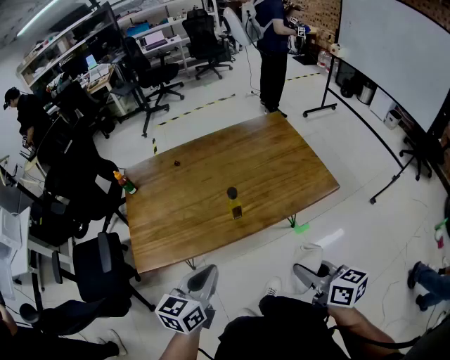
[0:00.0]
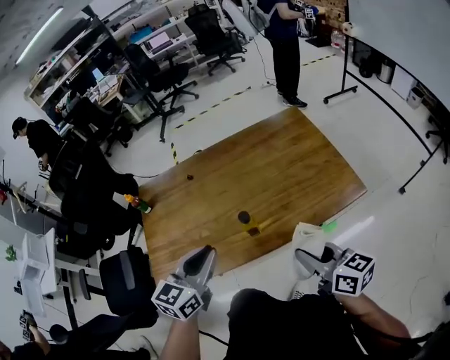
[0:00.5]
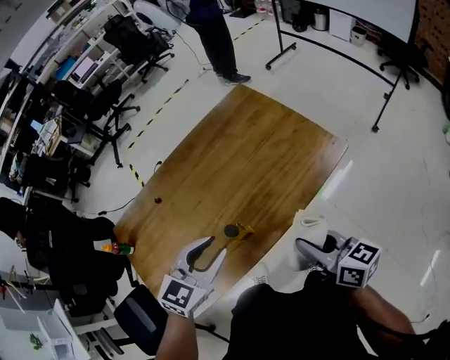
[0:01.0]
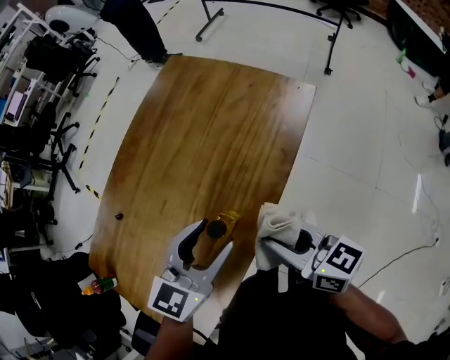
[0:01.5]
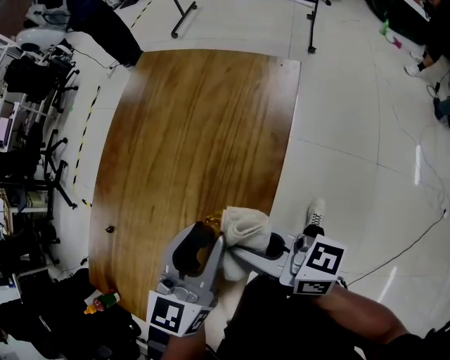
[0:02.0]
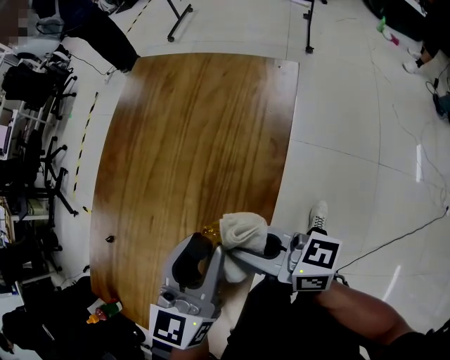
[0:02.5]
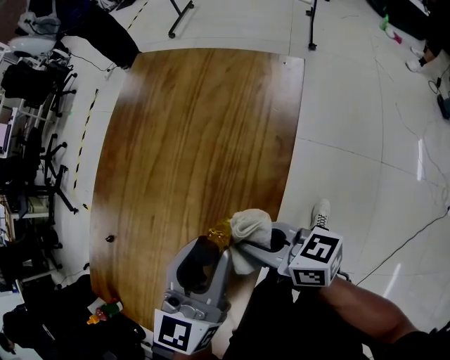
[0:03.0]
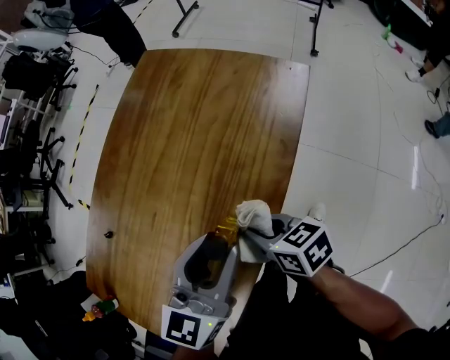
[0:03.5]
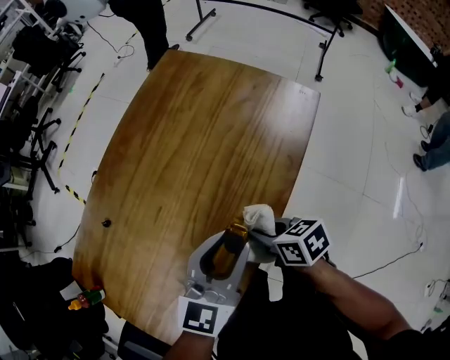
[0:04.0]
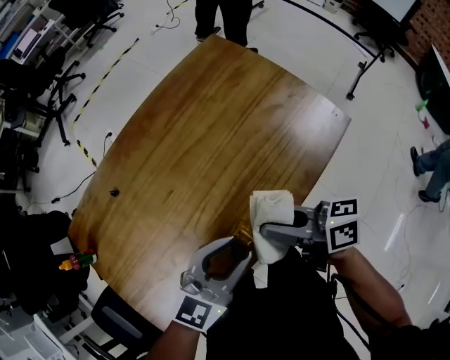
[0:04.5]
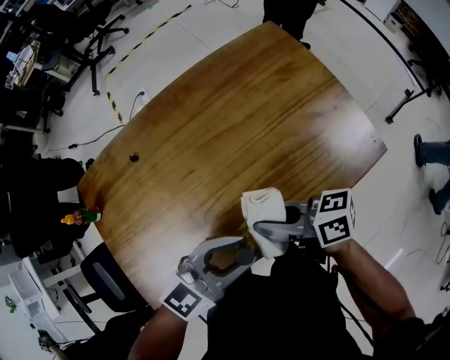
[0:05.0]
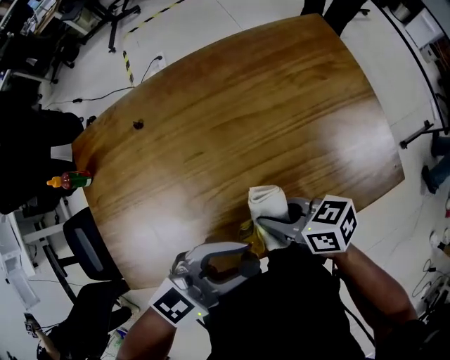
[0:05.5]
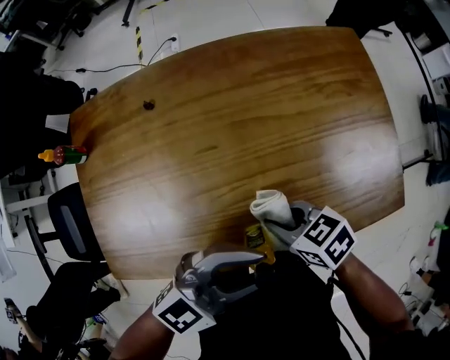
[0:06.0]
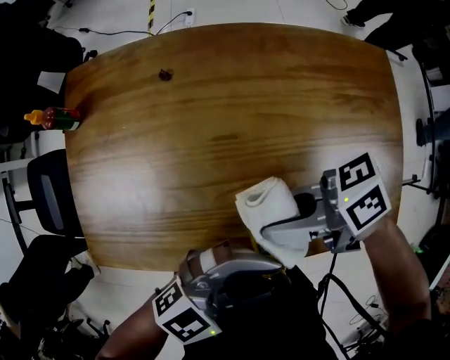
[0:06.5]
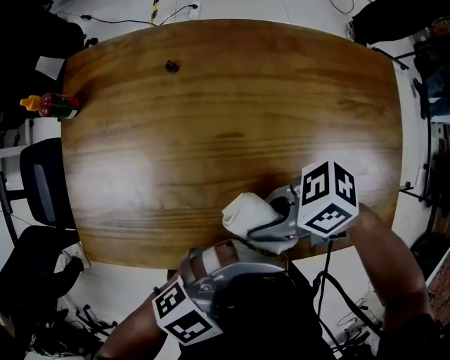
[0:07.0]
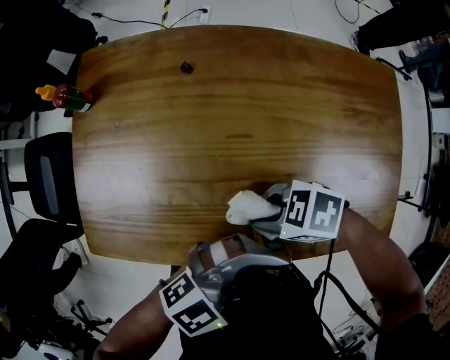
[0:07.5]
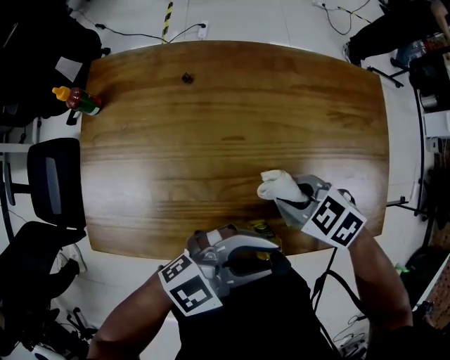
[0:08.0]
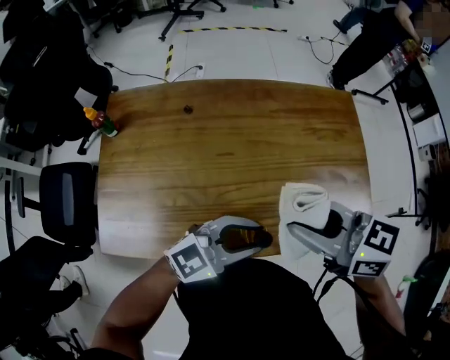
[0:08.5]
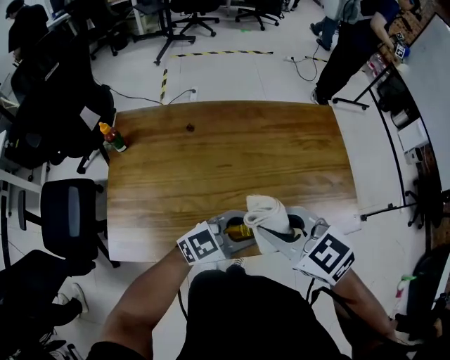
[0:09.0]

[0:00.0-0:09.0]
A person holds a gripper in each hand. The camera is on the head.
0:00.0 to 0:02.0: The right gripper moves approximately 25 cm, and swivels roughly 40 degrees. Meanwhile the left gripper moves some 25 cm, swivels about 50 degrees, and opens up.
0:02.0 to 0:04.5: The right gripper shifts approximately 5 cm forward, moves approximately 15 cm downward and comes back, and changes its angle by approximately 40 degrees.
0:04.5 to 0:07.0: The right gripper moves up and down over about 10 cm, changing direction 2 times, and changes its angle by roughly 90 degrees.
0:07.0 to 0:09.0: The right gripper shifts about 20 cm upward, and rotates roughly 70 degrees.

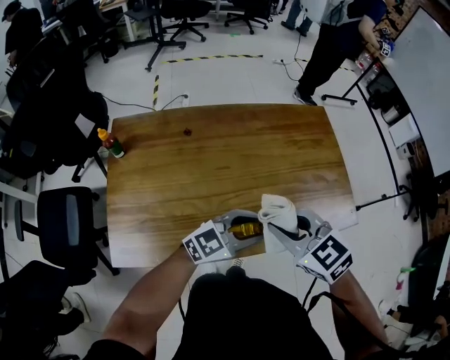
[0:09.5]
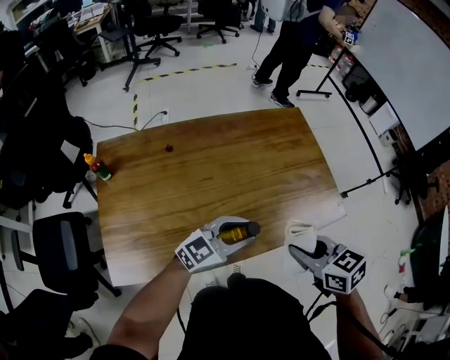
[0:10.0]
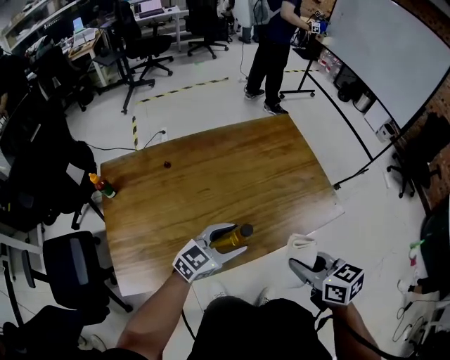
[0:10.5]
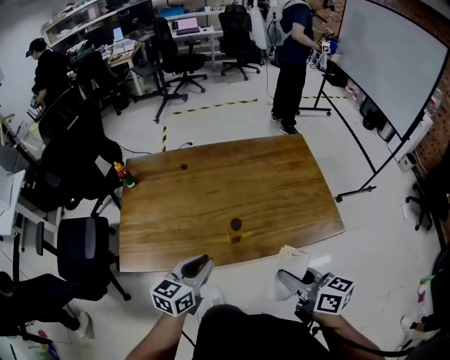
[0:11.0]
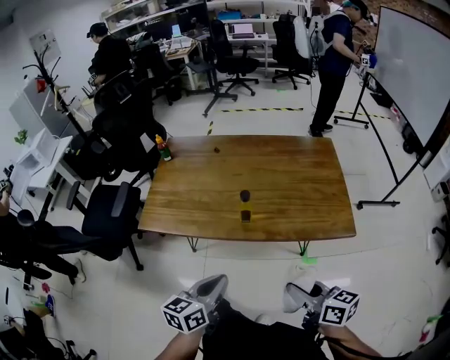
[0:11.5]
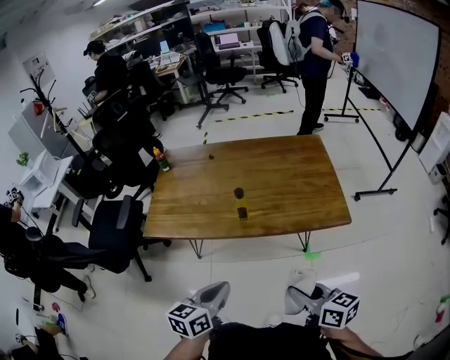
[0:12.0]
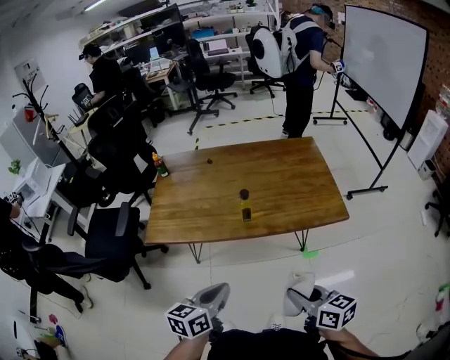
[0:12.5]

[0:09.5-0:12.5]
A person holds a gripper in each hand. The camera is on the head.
0:09.5 to 0:11.0: The right gripper shifts some 20 cm to the right and backward, and rotates around the line of its fingers by about 40 degrees, clockwise from behind. The left gripper is displaced backward and to the left by some 10 cm, rotates about 50 degrees, and opens, then closes again.
0:11.0 to 0:12.5: Both grippers travel together backward, some 20 cm.

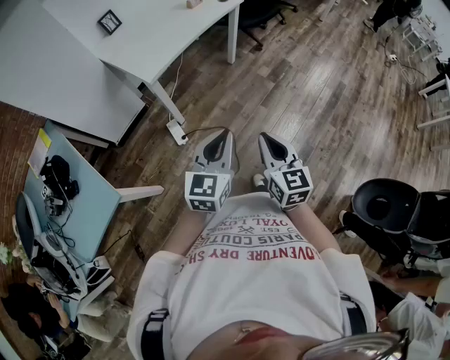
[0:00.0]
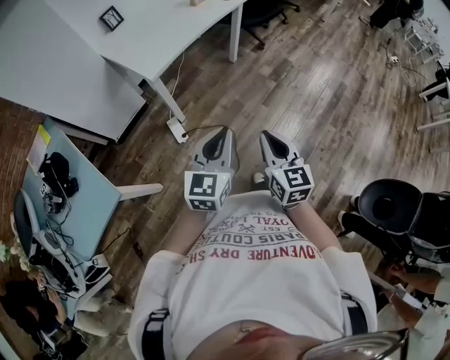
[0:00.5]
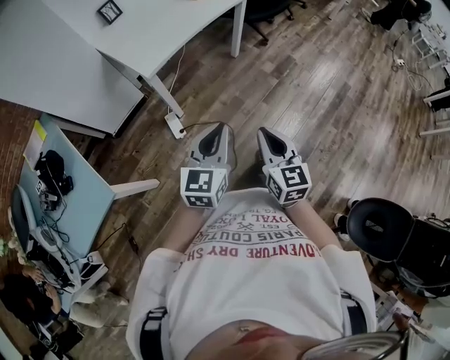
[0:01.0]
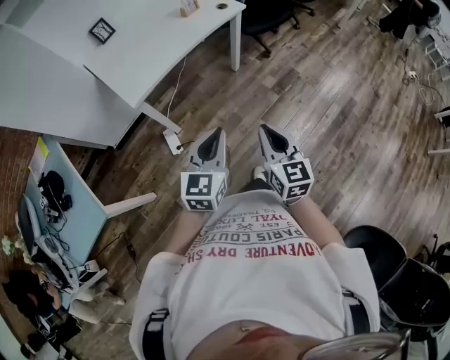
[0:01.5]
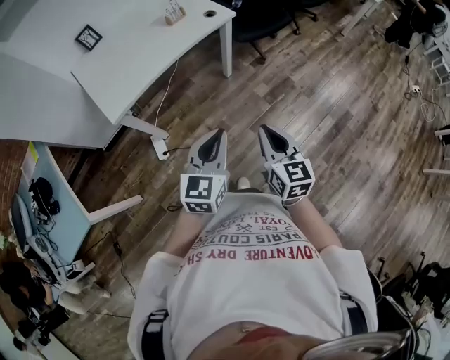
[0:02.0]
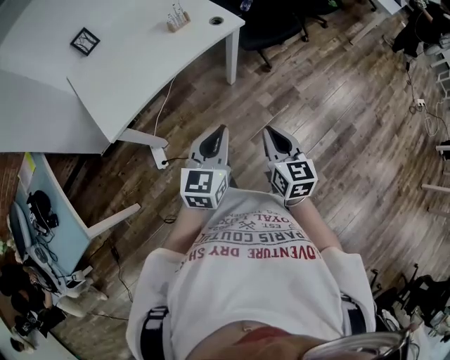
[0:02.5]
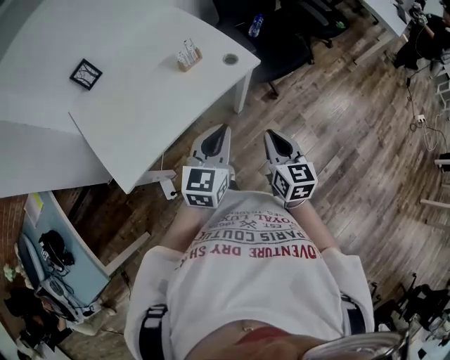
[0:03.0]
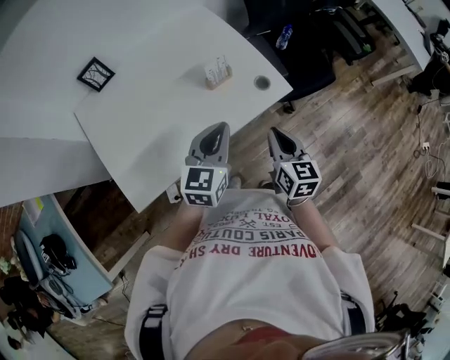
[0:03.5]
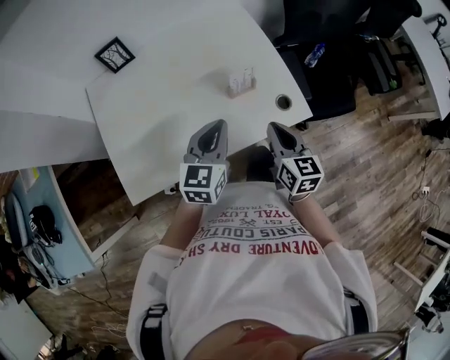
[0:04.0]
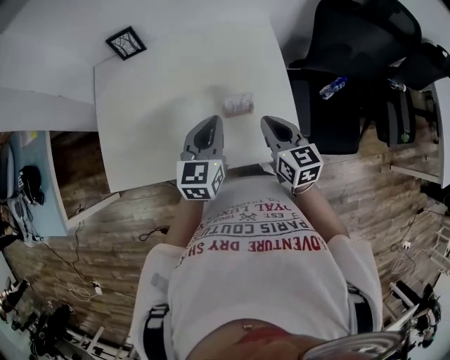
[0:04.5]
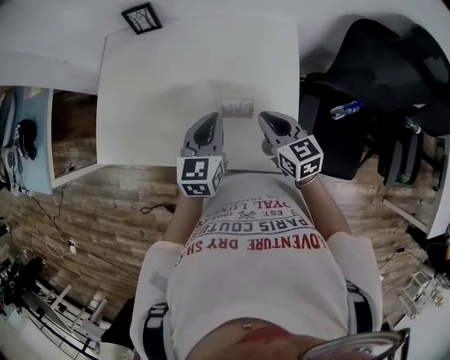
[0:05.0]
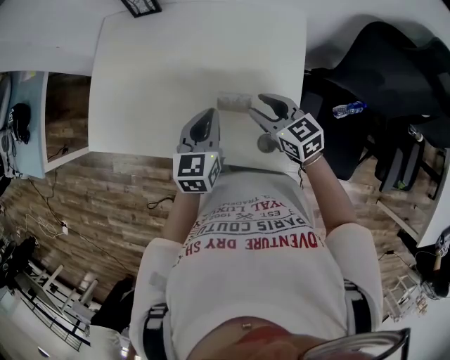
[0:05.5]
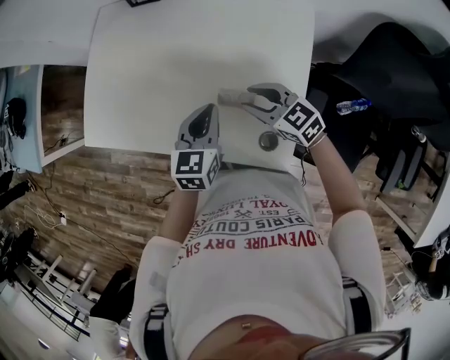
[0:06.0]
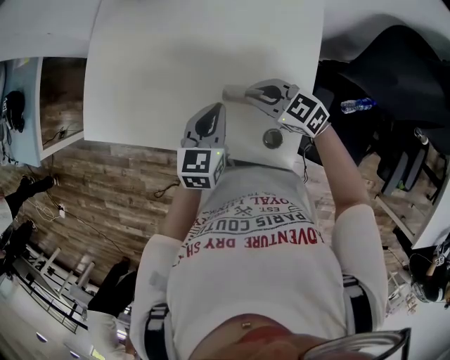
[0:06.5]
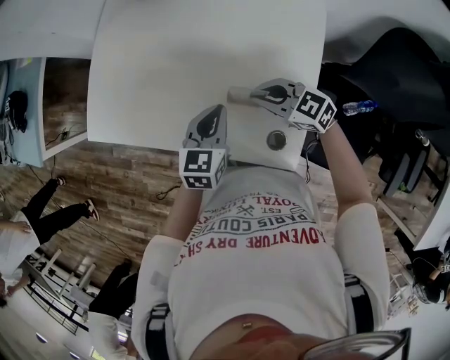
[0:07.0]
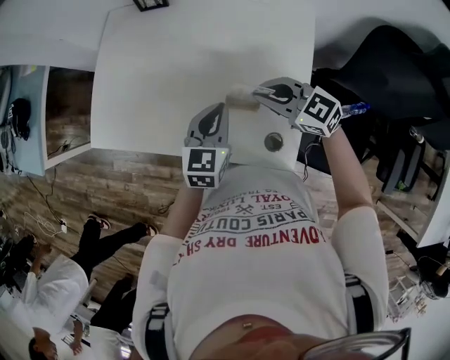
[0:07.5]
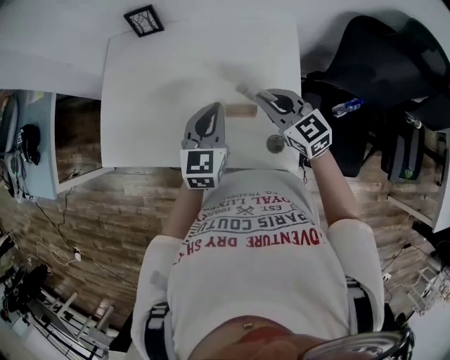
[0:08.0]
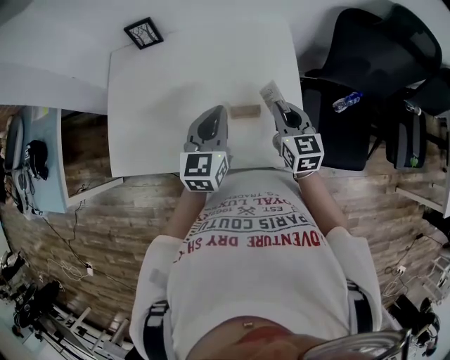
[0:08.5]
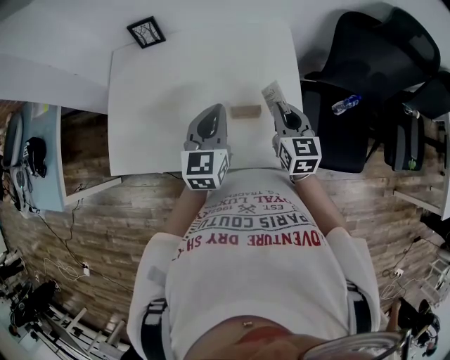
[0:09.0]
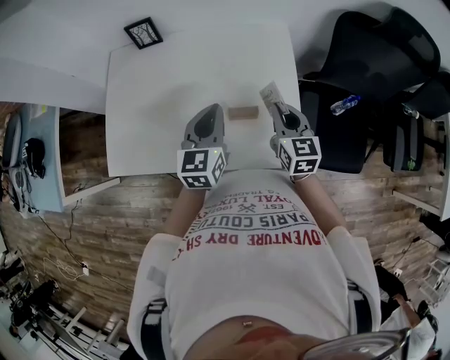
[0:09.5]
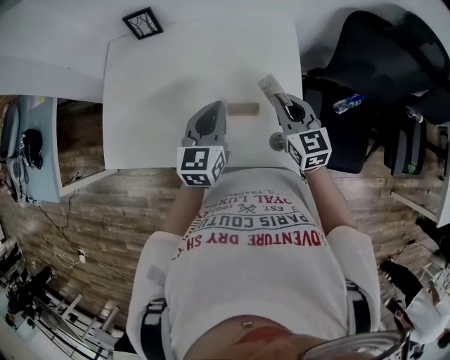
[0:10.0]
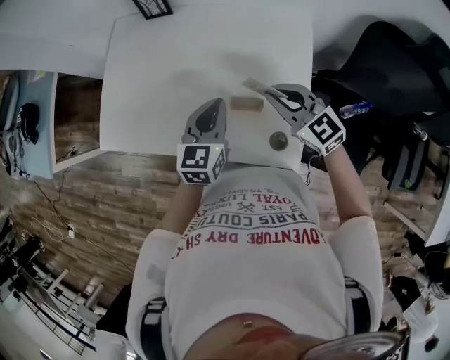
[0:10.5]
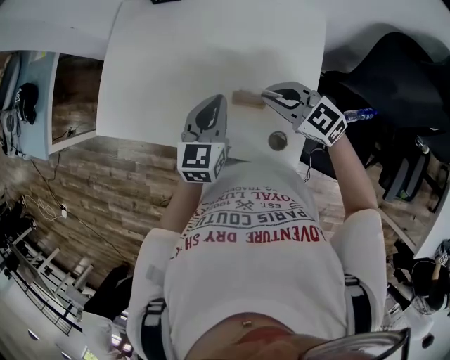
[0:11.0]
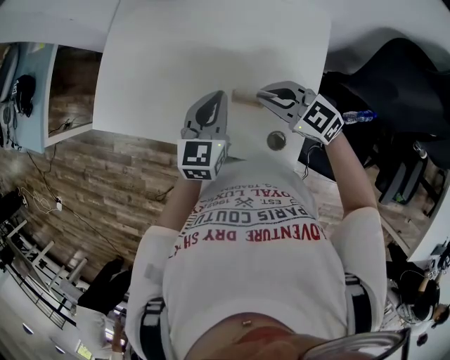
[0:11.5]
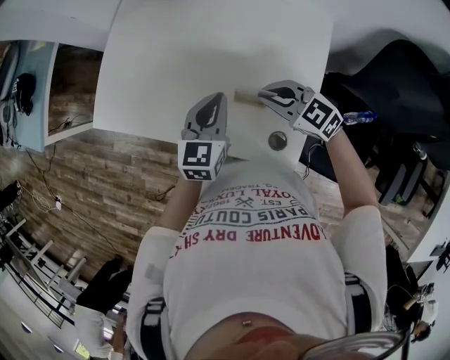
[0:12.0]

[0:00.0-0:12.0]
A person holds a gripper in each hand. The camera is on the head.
0:00.0 to 0:02.0: The grippers both shift forward and to the right by roughly 35 cm.
0:02.0 to 0:04.0: The pair of grippers is taken forward, about 60 cm. The left gripper changes its angle by about 20 degrees.
0:04.0 to 0:06.0: The right gripper shifts by about 20 cm, turns by approximately 80 degrees, and opens up. The left gripper moves about 15 cm, and turns by approximately 40 degrees.
0:06.0 to 0:08.0: The grippers both shift upward by roughly 10 cm. The right gripper turns by about 20 degrees, and closes up.
0:08.0 to 0:10.0: The right gripper heads to the right, covering approximately 5 cm, and swivels about 20 degrees.
0:10.0 to 0:12.0: The left gripper shifts by roughly 5 cm. Meanwhile the right gripper changes place by some 10 cm, and swivels about 60 degrees.

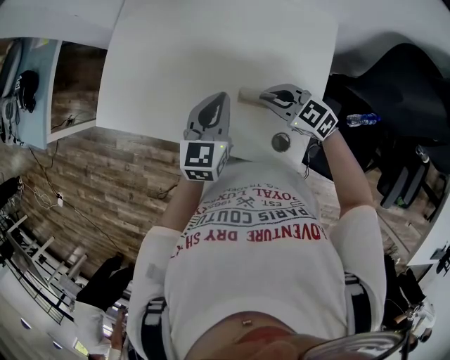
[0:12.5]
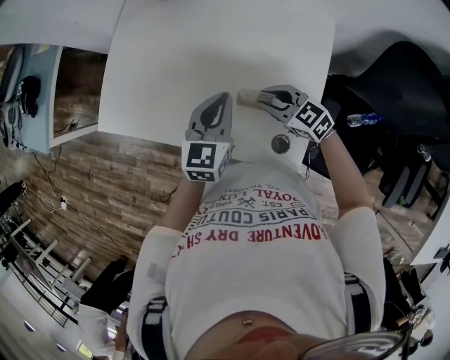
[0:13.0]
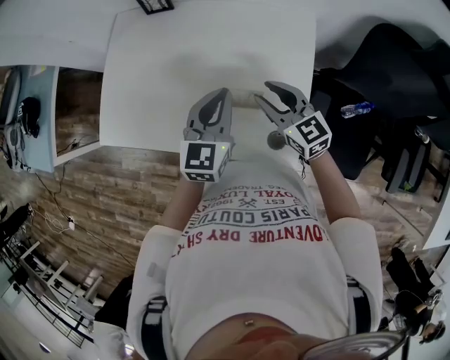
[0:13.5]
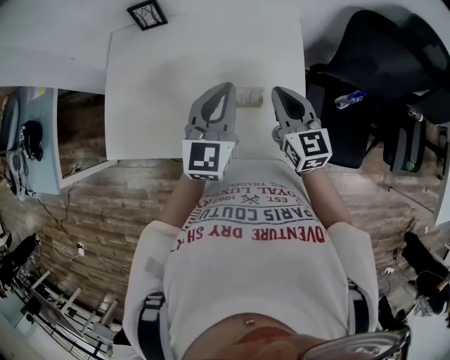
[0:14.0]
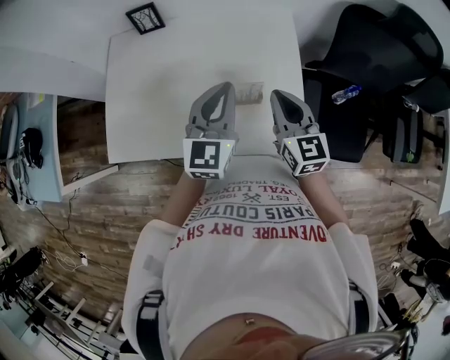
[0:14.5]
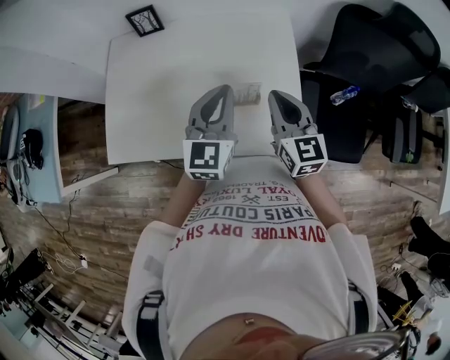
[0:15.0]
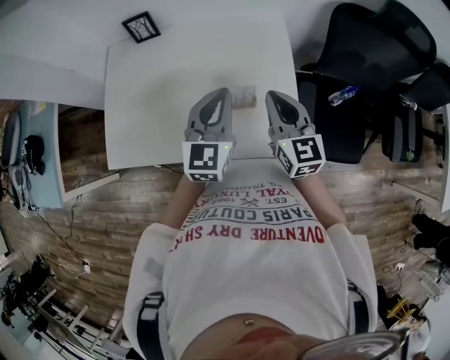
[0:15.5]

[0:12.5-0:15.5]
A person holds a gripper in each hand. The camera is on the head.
0:12.5 to 0:14.0: The two grippers go approximately 15 cm upward. The right gripper turns by approximately 60 degrees, and opens, then closes once more. Meanwhile the left gripper turns by approximately 20 degrees.
0:14.0 to 0:15.5: The grippers move only a little.
